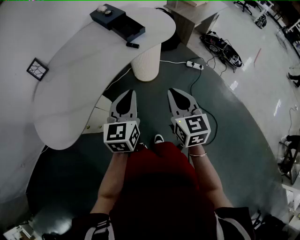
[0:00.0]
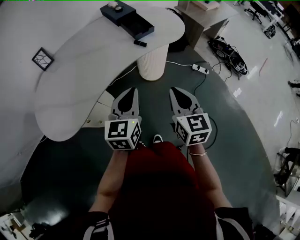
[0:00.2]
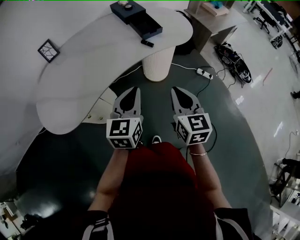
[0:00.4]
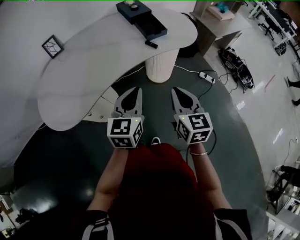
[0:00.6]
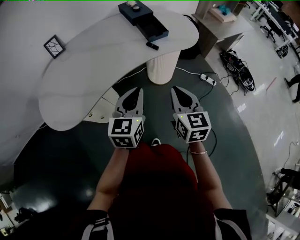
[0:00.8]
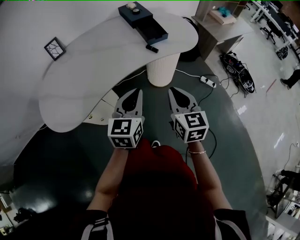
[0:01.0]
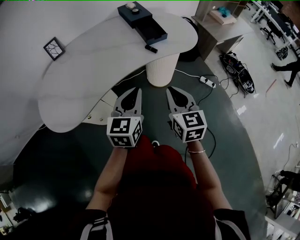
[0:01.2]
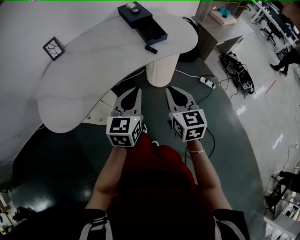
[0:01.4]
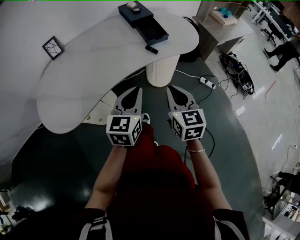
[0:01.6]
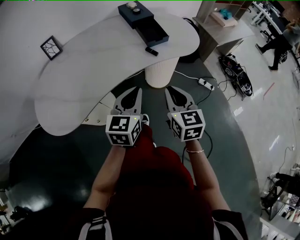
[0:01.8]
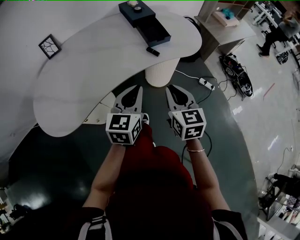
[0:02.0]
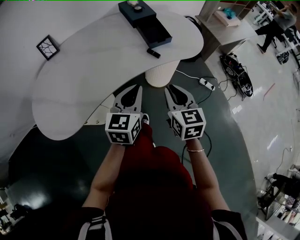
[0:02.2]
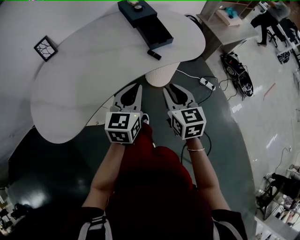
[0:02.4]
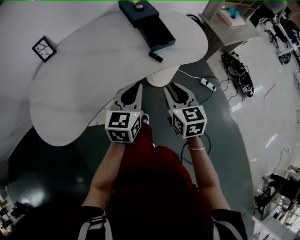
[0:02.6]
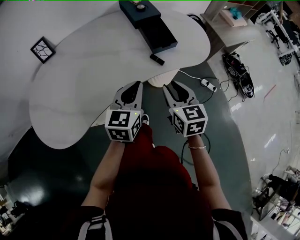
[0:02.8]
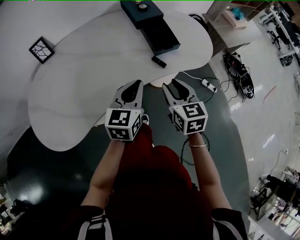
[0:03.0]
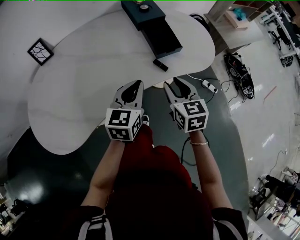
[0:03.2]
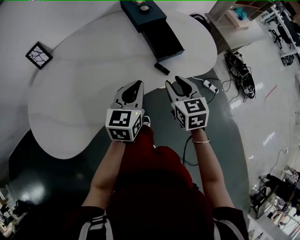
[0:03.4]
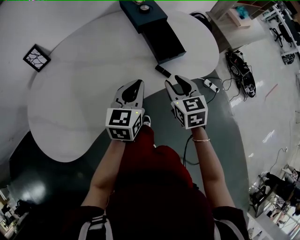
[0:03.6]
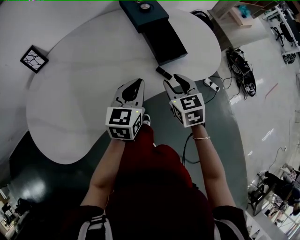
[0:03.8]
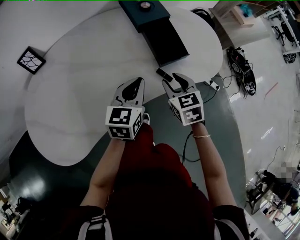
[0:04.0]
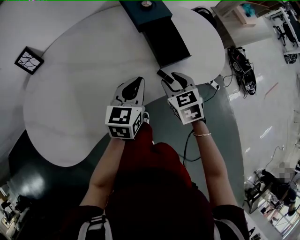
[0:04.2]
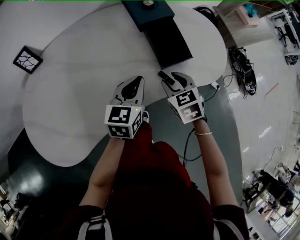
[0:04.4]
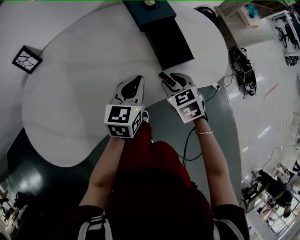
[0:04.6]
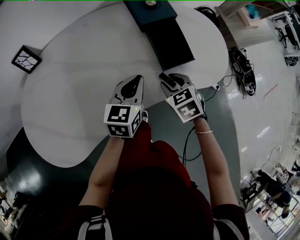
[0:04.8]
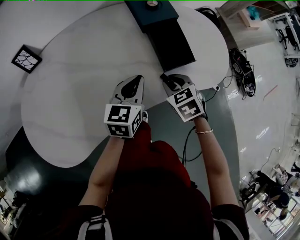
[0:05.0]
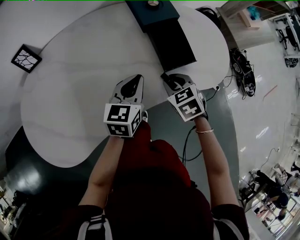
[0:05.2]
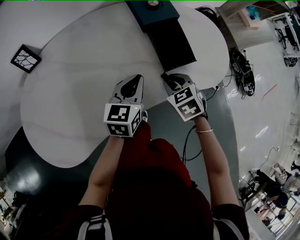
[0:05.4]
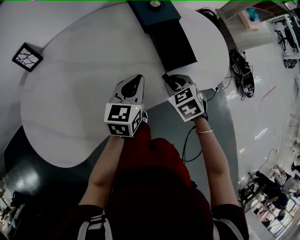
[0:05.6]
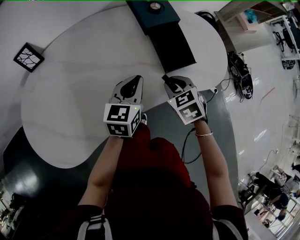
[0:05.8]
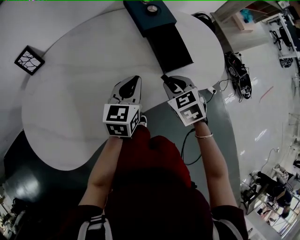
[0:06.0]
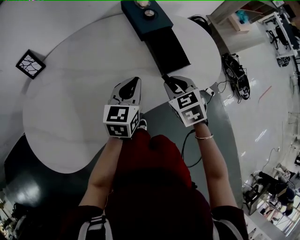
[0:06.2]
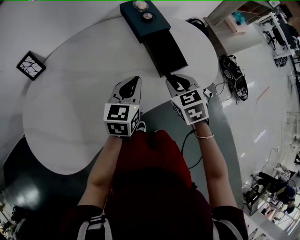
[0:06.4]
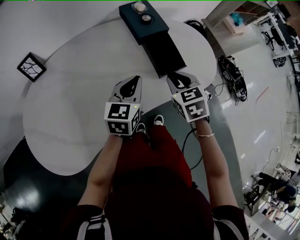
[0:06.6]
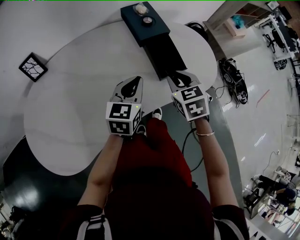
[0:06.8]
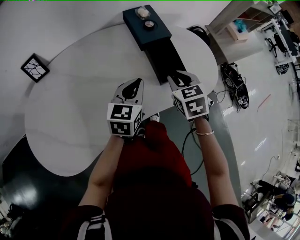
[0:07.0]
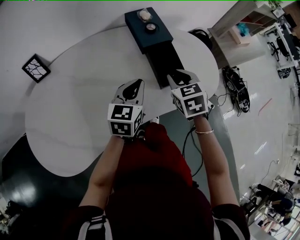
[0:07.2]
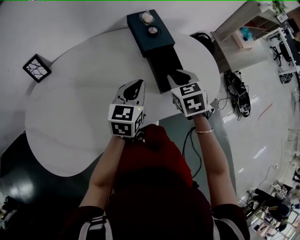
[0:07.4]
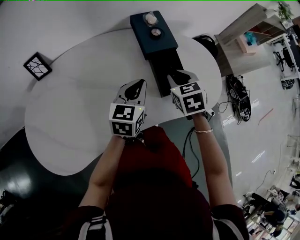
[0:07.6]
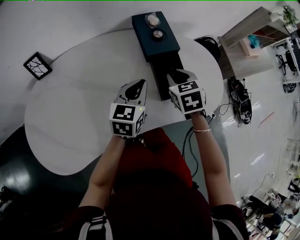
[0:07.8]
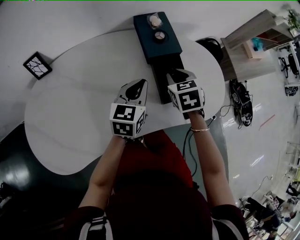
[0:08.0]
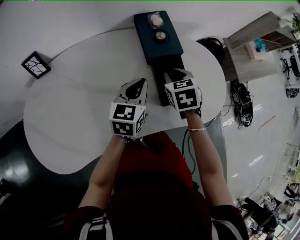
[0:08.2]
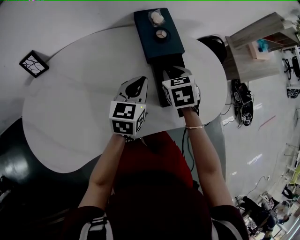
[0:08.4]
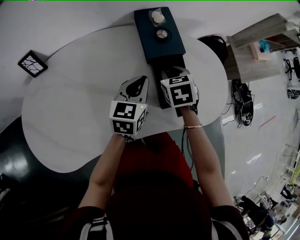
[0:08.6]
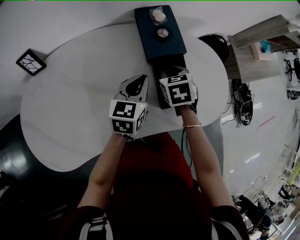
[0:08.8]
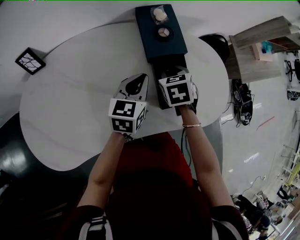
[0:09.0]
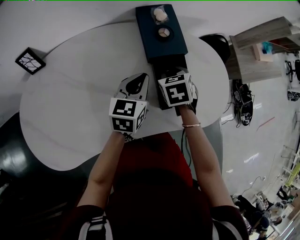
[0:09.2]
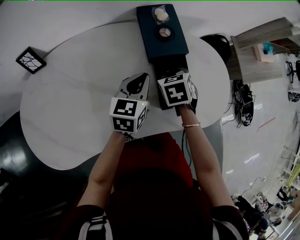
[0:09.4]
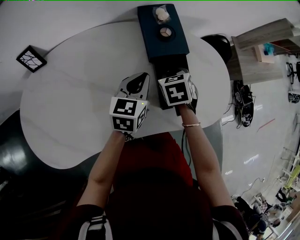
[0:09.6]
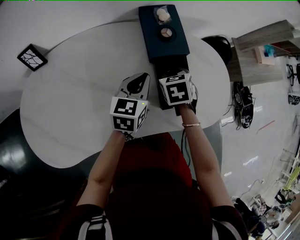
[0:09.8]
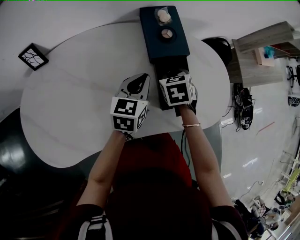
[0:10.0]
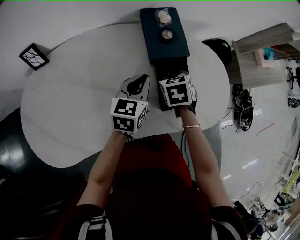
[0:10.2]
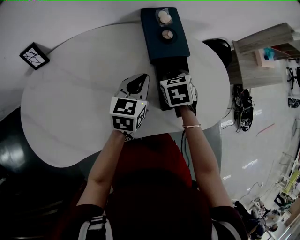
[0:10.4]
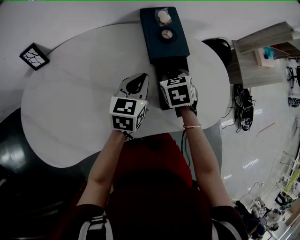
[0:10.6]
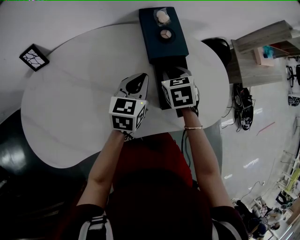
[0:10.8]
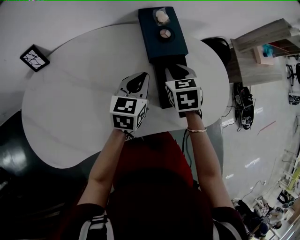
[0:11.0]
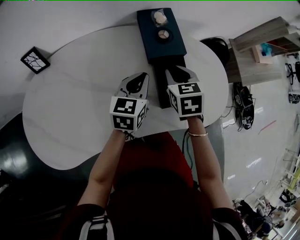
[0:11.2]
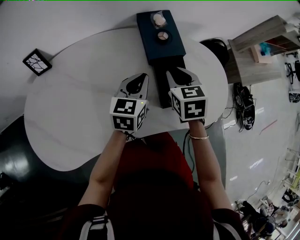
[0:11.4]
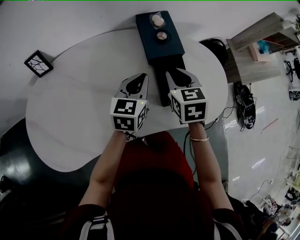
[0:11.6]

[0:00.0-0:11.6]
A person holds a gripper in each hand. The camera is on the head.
0:00.0 to 0:01.4: The right gripper shifts some 5 cm forward.
0:01.4 to 0:02.8: The two grippers go about 15 cm forward. The right gripper opens its fingers.
0:02.8 to 0:04.4: Both grippers move forward and downward, approximately 15 cm. The right gripper turns by about 30 degrees.
0:04.4 to 0:05.8: There are only small adjustments of the grippers.
0:05.8 to 0:07.2: The left gripper shifts by about 5 cm. Meanwhile the right gripper moves upward and forward, approximately 10 cm.
0:07.2 to 0:08.8: The left gripper goes roughly 10 cm forward, while the right gripper moves forward and downward, about 15 cm.
0:08.8 to 0:10.2: The grippers move only a little.
0:10.2 to 0:11.6: The right gripper shifts some 10 cm upward.

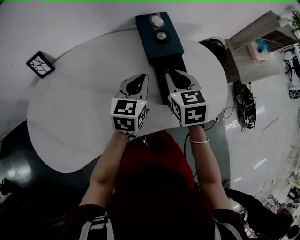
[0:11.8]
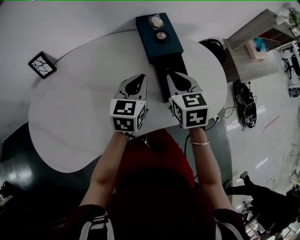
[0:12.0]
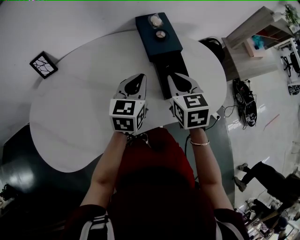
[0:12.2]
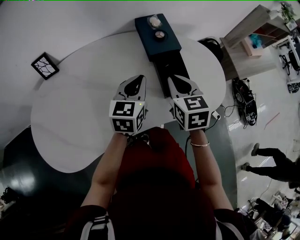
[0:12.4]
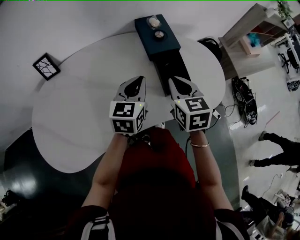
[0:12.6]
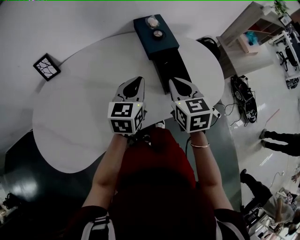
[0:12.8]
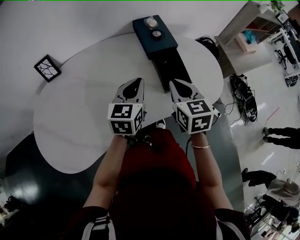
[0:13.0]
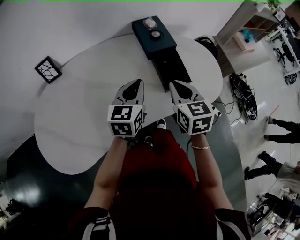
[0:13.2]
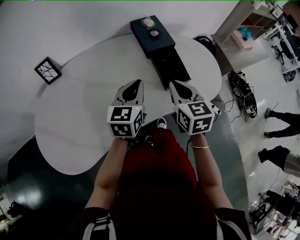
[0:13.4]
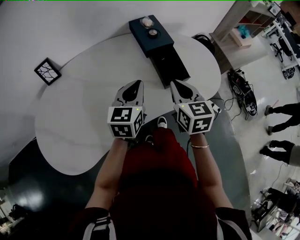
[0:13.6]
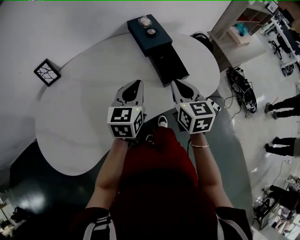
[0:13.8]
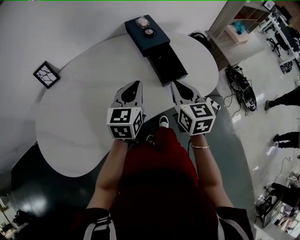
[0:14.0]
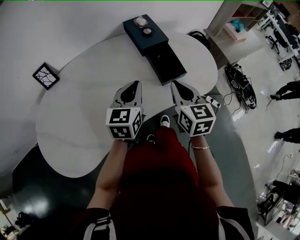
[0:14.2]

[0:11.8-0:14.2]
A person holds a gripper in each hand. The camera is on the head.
0:11.8 to 0:13.0: The grippers both shift backward by approximately 10 cm.
0:13.0 to 0:14.2: The right gripper changes place by roughly 5 cm.

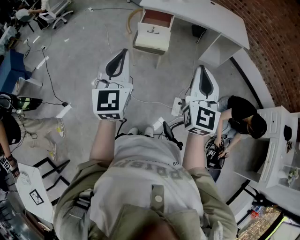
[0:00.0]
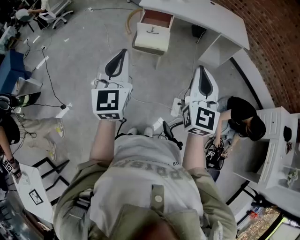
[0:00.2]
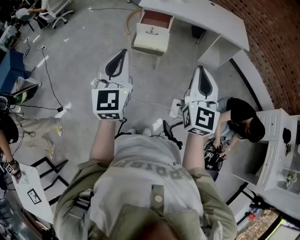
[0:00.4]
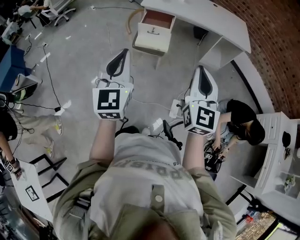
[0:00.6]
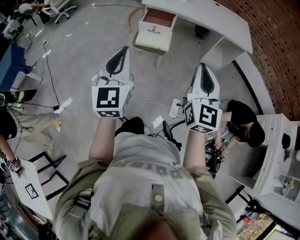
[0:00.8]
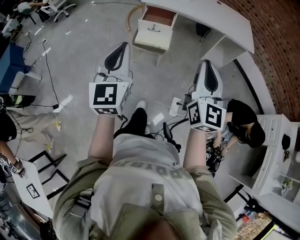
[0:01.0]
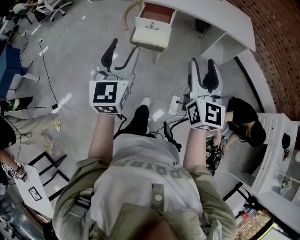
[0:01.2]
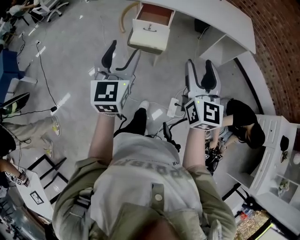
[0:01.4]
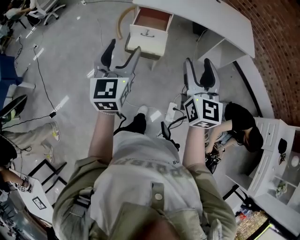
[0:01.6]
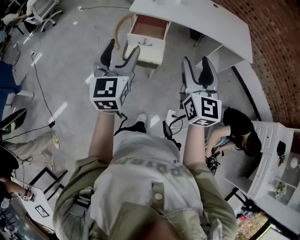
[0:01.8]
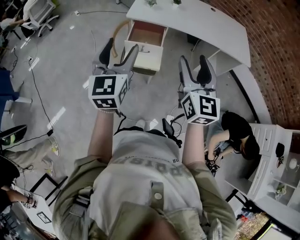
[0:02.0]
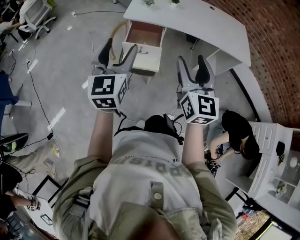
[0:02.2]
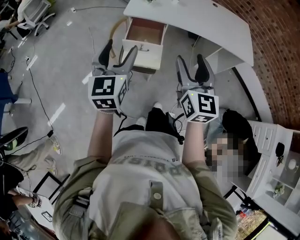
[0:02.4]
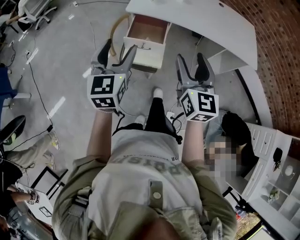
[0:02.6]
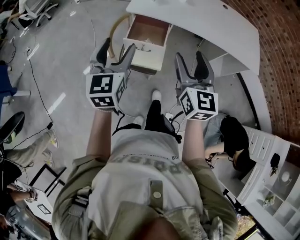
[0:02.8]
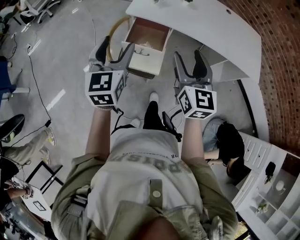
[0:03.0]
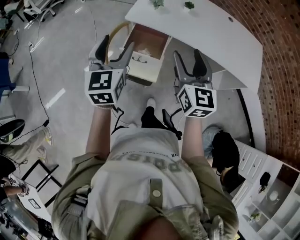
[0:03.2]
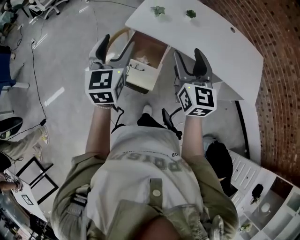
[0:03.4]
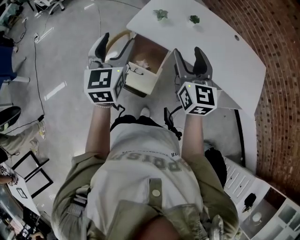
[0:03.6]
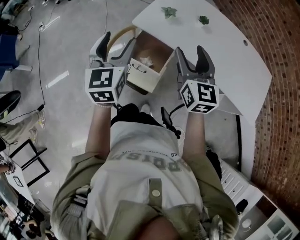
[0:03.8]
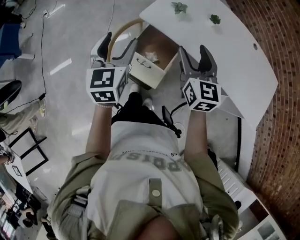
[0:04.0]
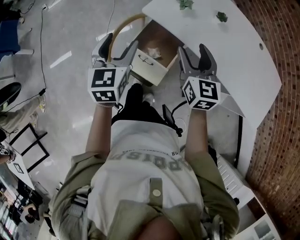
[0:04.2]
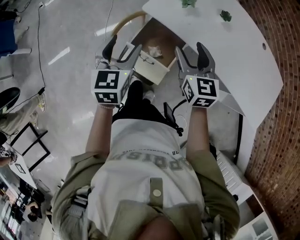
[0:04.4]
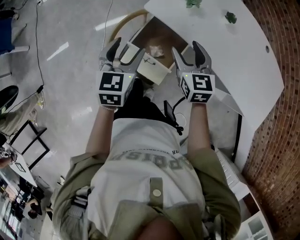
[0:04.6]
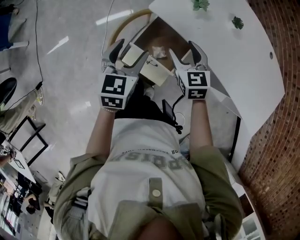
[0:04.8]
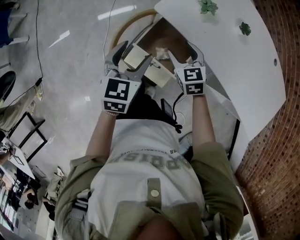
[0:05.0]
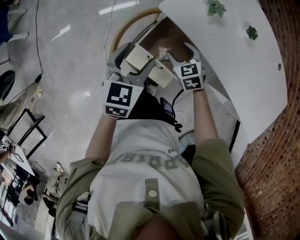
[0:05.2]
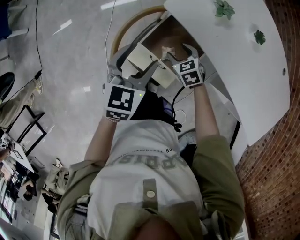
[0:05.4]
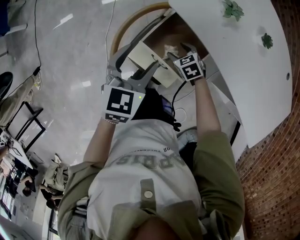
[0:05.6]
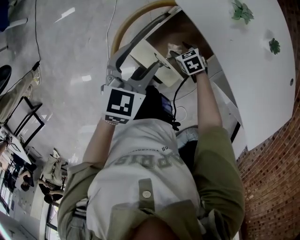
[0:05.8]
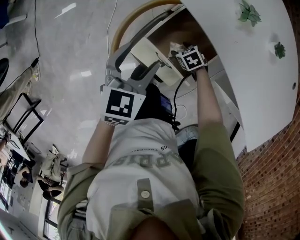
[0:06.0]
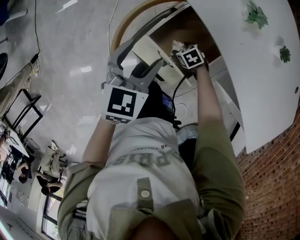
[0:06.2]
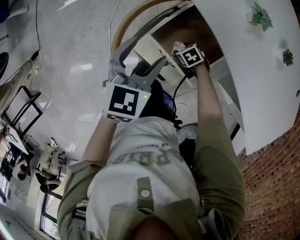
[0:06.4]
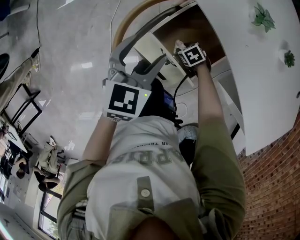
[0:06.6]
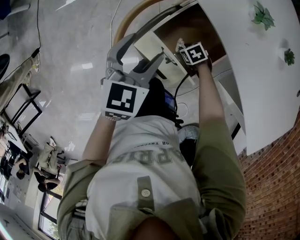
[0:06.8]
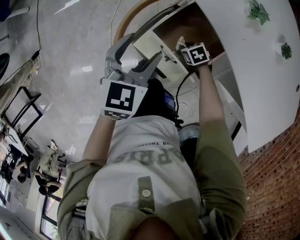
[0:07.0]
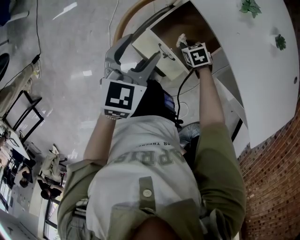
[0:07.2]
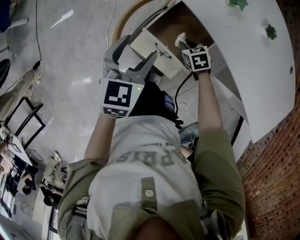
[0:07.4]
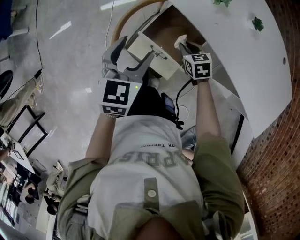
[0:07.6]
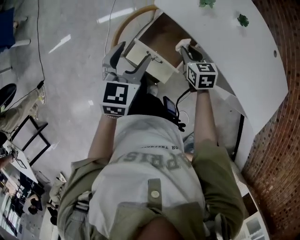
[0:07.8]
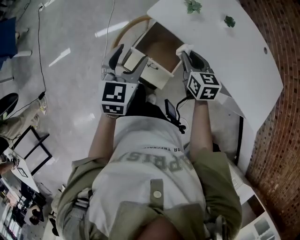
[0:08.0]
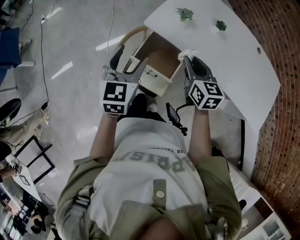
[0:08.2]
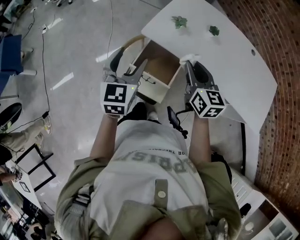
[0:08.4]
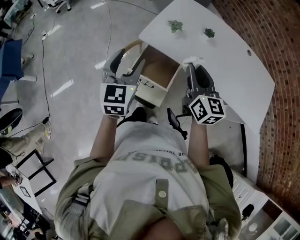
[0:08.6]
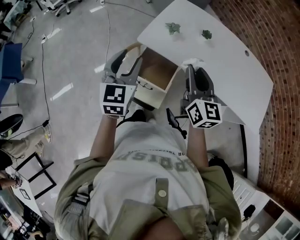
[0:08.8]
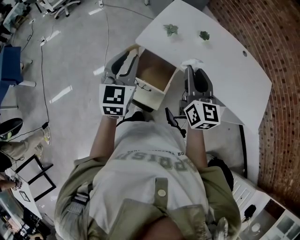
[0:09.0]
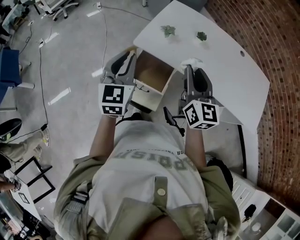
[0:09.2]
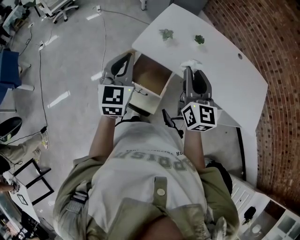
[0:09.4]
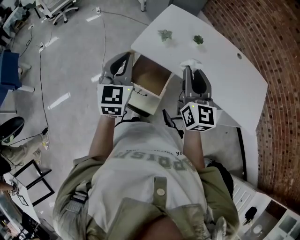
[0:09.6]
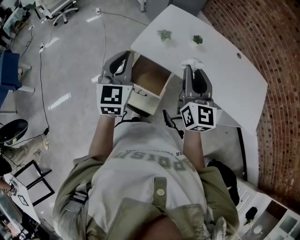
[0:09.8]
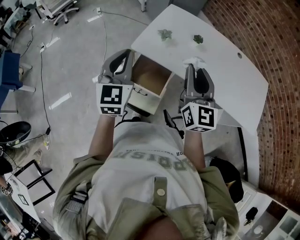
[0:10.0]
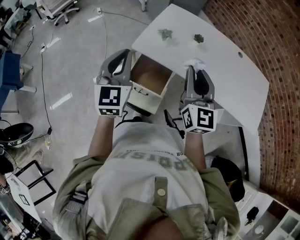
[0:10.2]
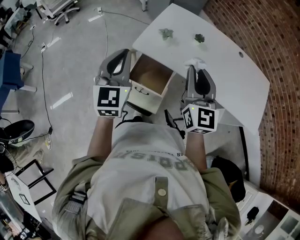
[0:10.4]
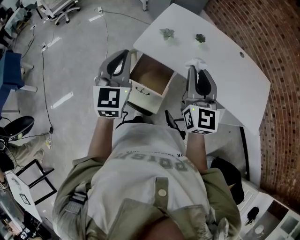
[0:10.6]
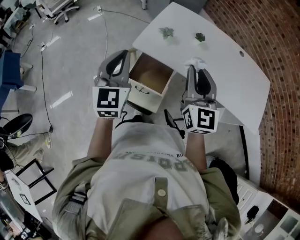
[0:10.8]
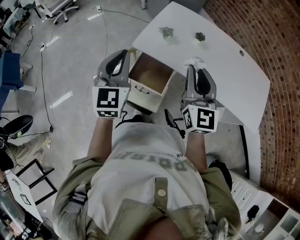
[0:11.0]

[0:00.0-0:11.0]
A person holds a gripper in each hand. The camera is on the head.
0:00.0 to 0:01.6: The two grippers go approximately 20 cm forward. The left gripper opens. The right gripper opens its fingers.
0:01.6 to 0:03.2: Both grippers move forward, some 30 cm.
0:03.2 to 0:04.8: The left gripper moves downward and forward, some 20 cm, and swivels roughly 20 degrees. Meanwhile the right gripper moves forward and downward, approximately 30 cm, and swivels some 40 degrees.
0:04.8 to 0:06.2: The left gripper shifts some 10 cm downward, while the right gripper shifts some 40 cm downward, and points its fingers approximately 40 degrees further downward.
0:06.2 to 0:07.8: The left gripper shifts about 10 cm upward; the right gripper moves upward, about 30 cm, changes its angle by roughly 50 degrees, and closes its fingers.
0:07.8 to 0:09.4: The left gripper travels upward by about 15 cm, changes its angle by some 20 degrees, and closes its fingers. Meanwhile the right gripper travels upward by approximately 30 cm, and tips its fingers upward by about 50 degrees.
0:09.4 to 0:11.0: There are only small adjustments of the grippers.
